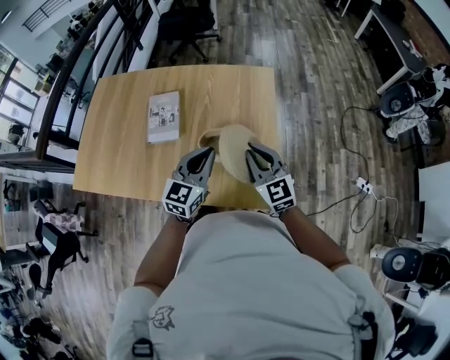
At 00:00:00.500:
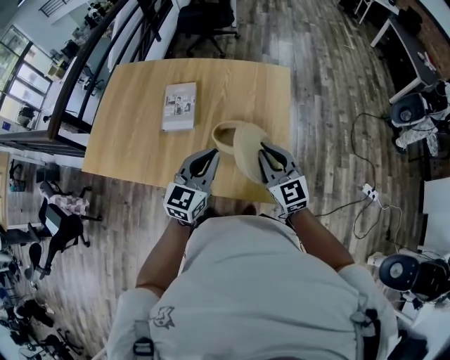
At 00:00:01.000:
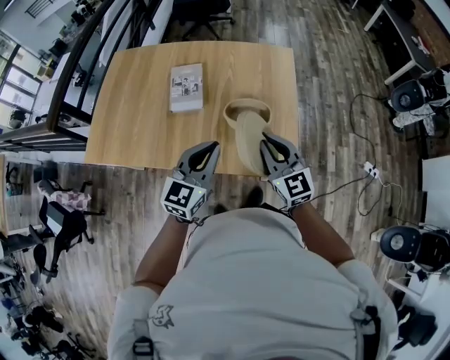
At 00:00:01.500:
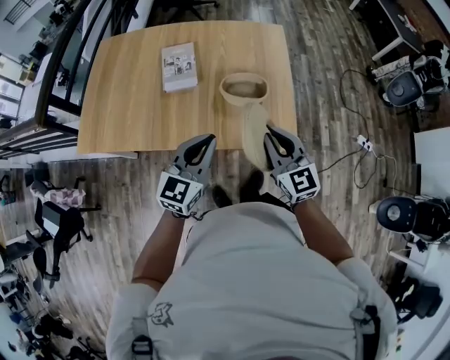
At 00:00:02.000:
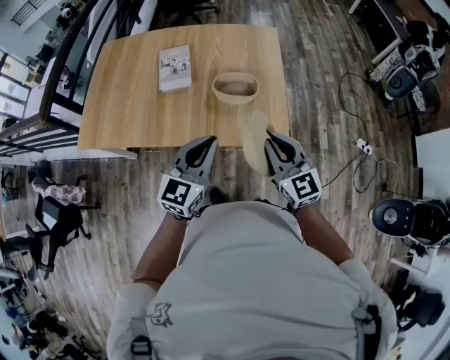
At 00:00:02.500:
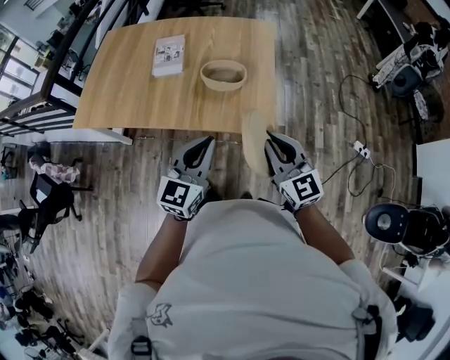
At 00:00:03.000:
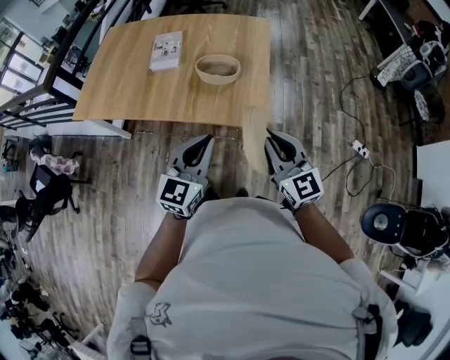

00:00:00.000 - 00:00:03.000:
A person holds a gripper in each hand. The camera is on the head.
00:00:00.000 - 00:00:01.500: The two grippers go about 20 cm backward and to the left.
00:00:01.500 - 00:00:03.000: Both grippers travel together to the right and backward, roughly 20 cm.

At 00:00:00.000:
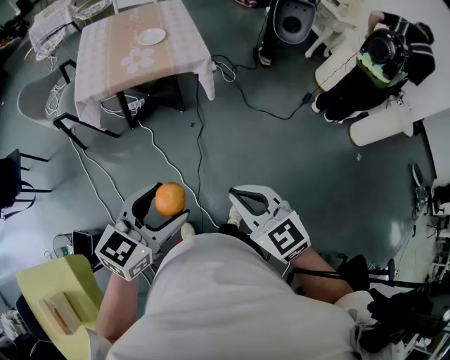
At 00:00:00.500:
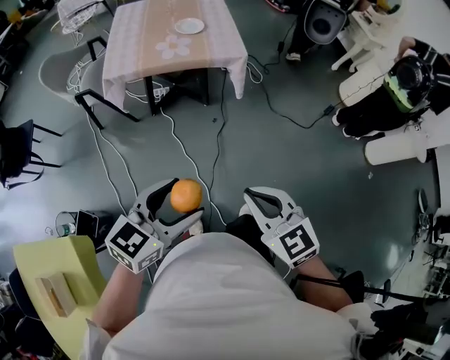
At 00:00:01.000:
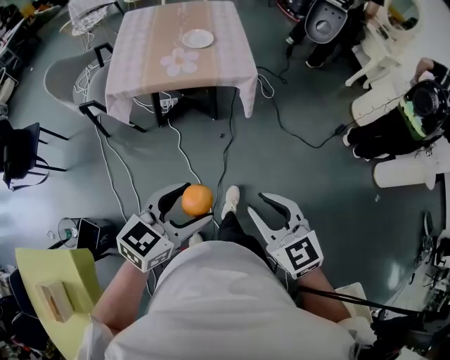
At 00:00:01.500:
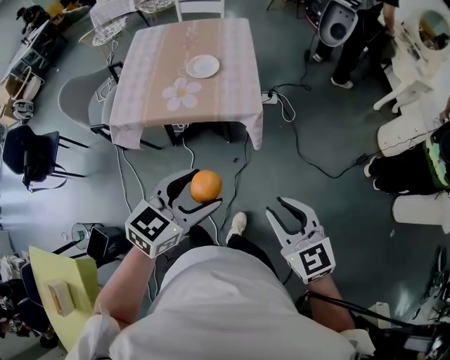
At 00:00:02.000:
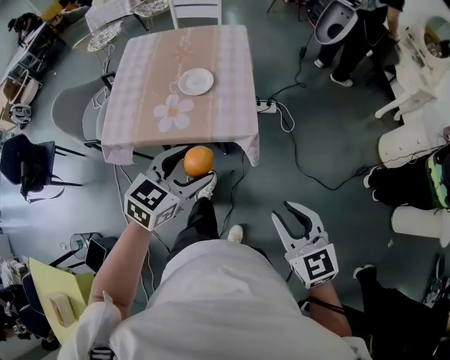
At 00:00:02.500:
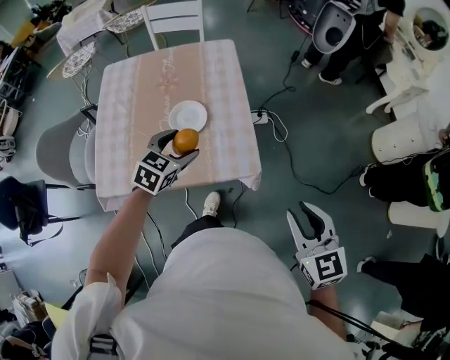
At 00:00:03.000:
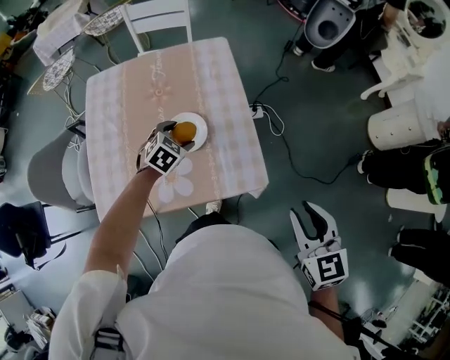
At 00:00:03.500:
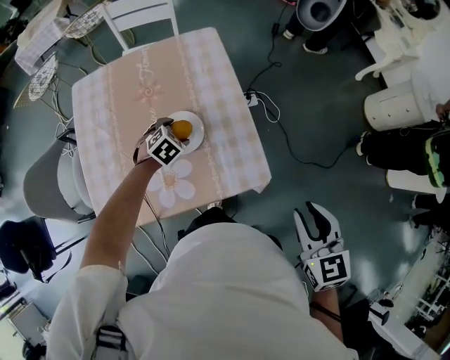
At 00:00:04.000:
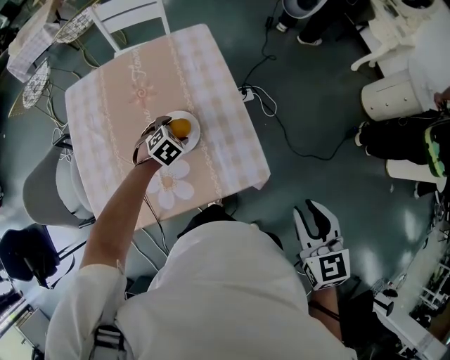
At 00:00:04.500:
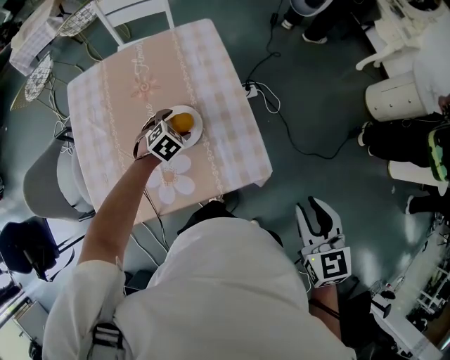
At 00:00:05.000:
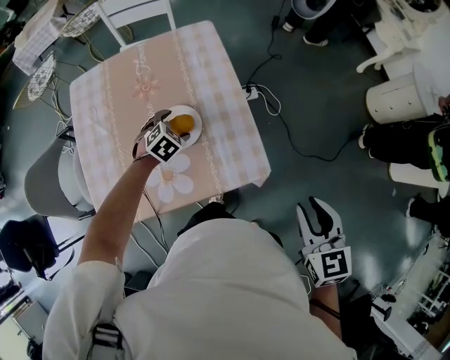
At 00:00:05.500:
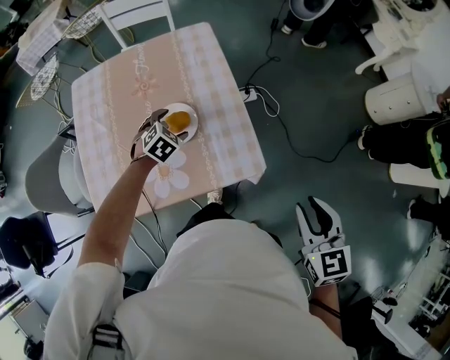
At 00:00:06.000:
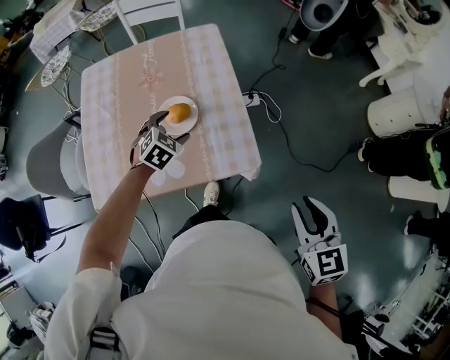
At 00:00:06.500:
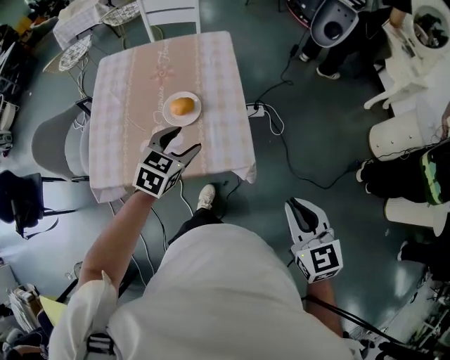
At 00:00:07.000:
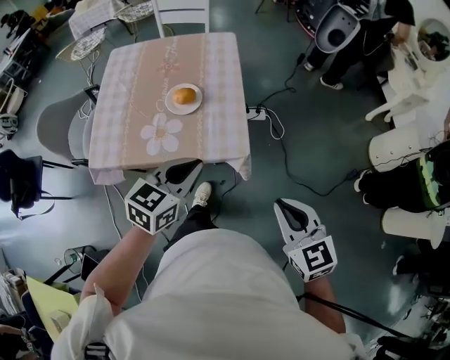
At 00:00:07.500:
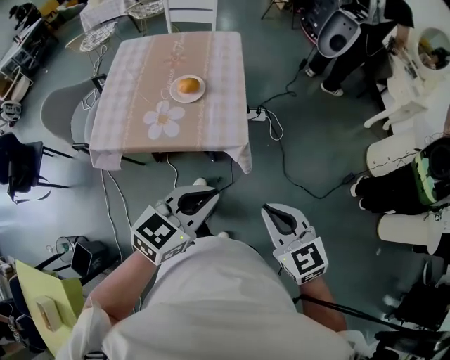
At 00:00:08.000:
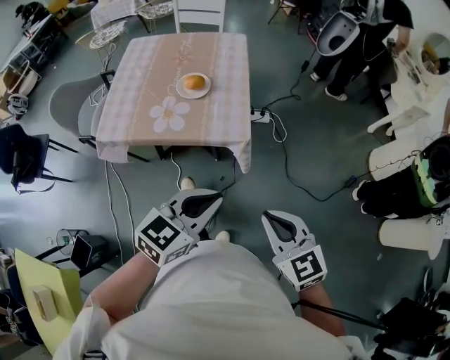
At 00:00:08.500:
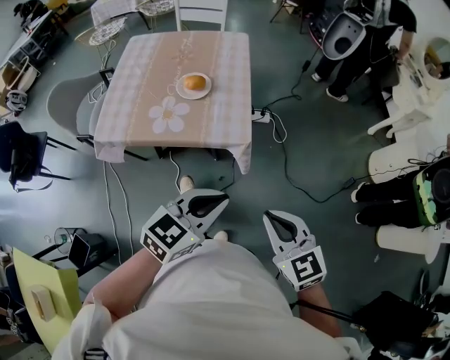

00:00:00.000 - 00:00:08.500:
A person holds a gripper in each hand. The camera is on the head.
00:00:00.000 - 00:00:02.000: The two grippers travel together, forward, some 40 cm. The right gripper opens.
00:00:02.000 - 00:00:04.000: The left gripper heads forward, downward and to the left, covering approximately 50 cm, and tilts its fingers about 40 degrees downward. Meanwhile the right gripper is displaced forward and to the left by about 25 cm, and turns by roughly 30 degrees.
00:00:04.000 - 00:00:06.500: The left gripper goes roughly 25 cm upward, backward and to the right, and changes its angle by some 40 degrees. The right gripper is displaced backward and to the right by some 10 cm.
00:00:06.500 - 00:00:08.500: The left gripper heads backward and to the right, covering approximately 30 cm, swivels some 20 degrees, and closes. The right gripper is displaced backward by roughly 15 cm.

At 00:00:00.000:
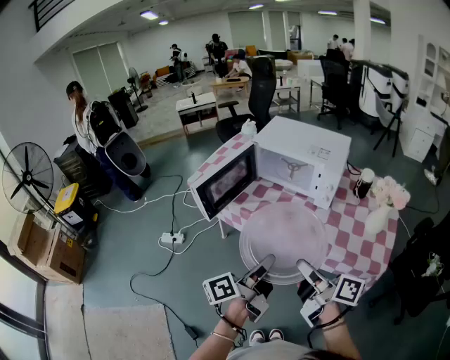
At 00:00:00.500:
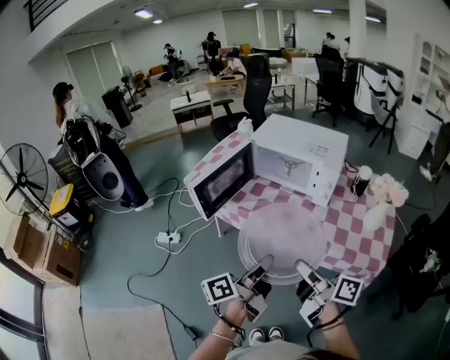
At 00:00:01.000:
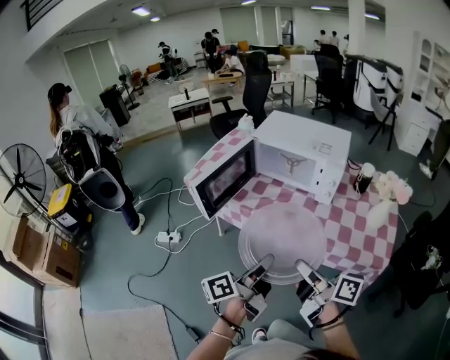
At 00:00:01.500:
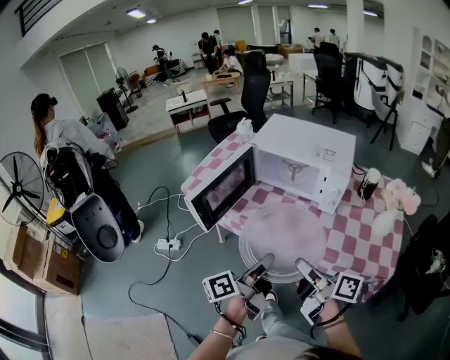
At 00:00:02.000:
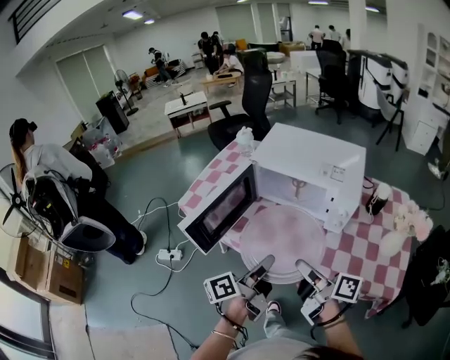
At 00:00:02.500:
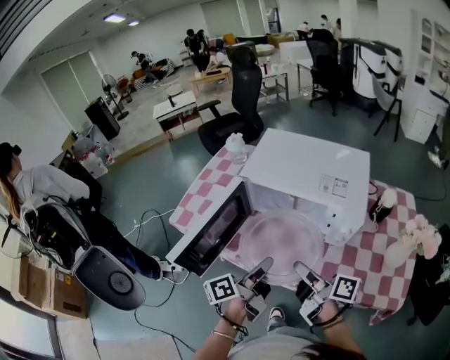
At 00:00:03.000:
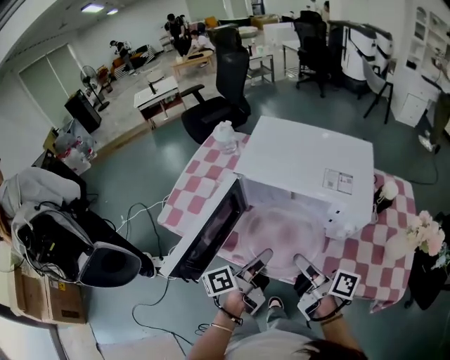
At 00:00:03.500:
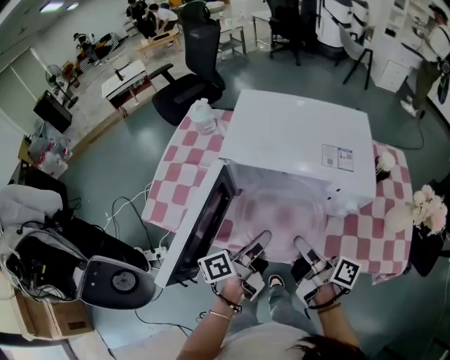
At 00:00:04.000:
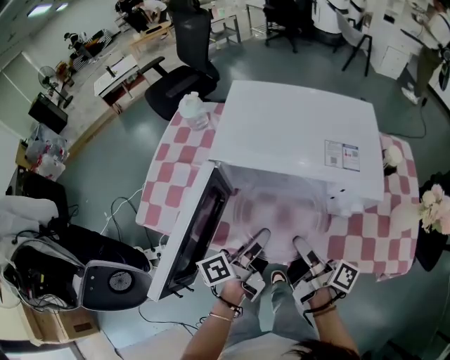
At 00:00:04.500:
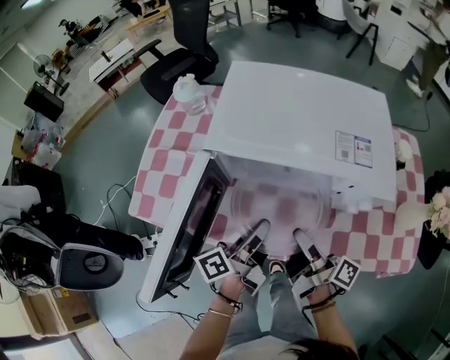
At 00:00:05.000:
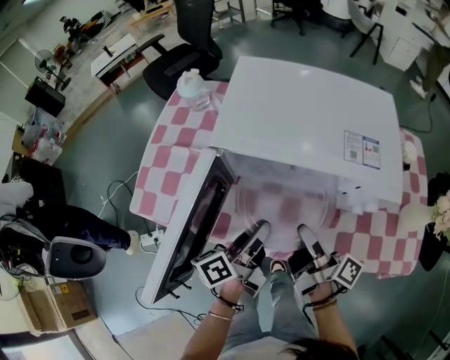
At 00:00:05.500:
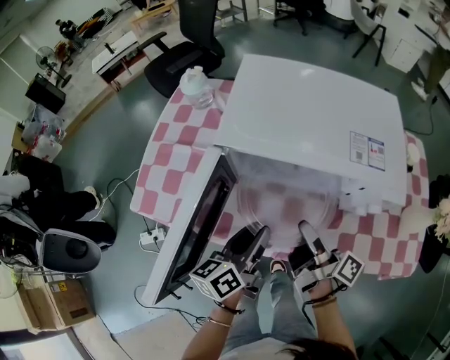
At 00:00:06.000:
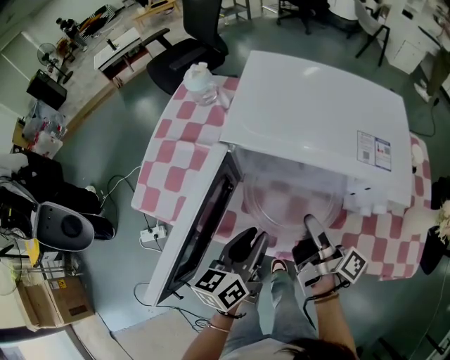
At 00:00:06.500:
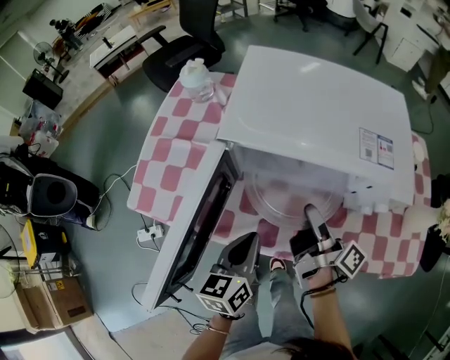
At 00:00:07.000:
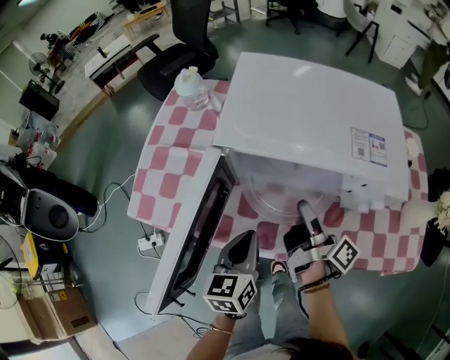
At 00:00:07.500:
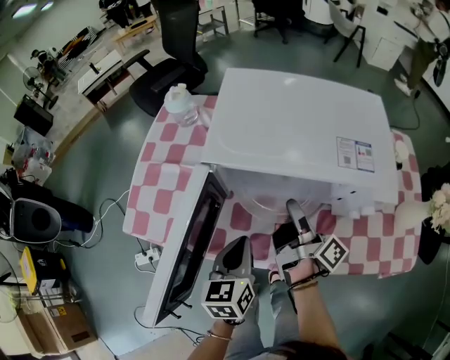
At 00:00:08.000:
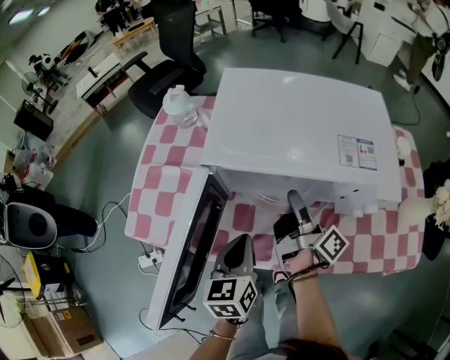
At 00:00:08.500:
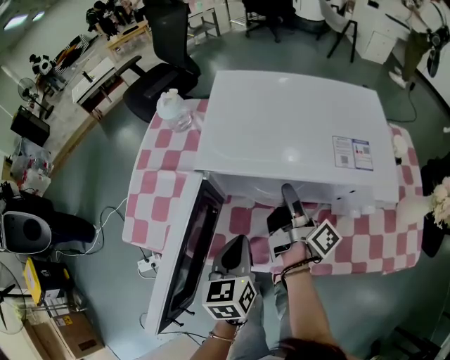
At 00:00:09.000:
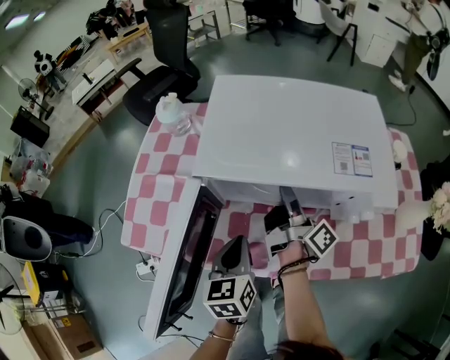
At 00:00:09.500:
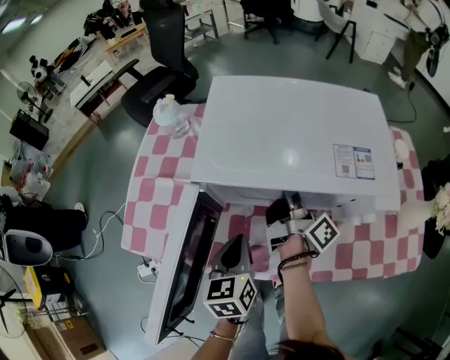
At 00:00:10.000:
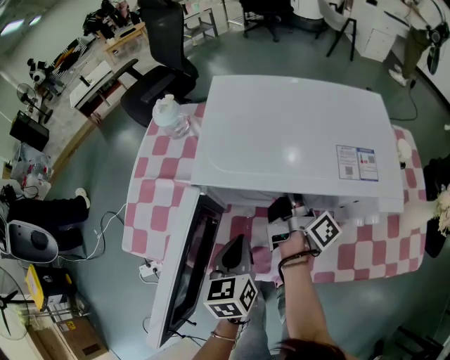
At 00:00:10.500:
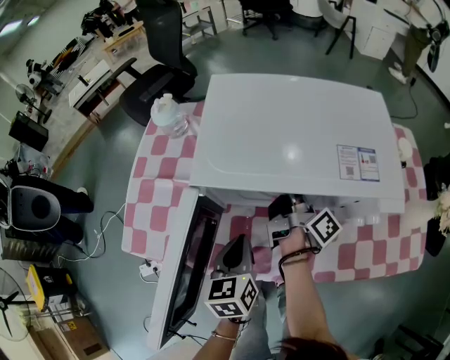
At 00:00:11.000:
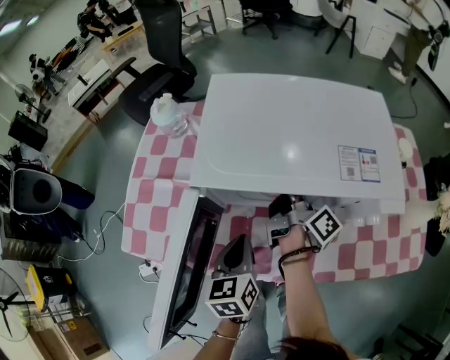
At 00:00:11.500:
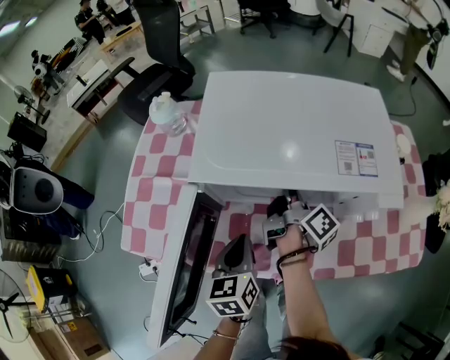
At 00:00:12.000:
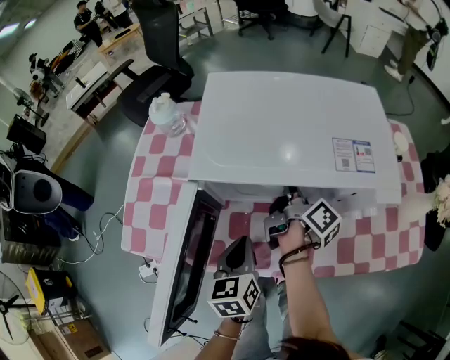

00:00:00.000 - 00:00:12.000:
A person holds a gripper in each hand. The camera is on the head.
00:00:00.000 - 00:00:02.000: The left gripper changes place by approximately 20 cm.
00:00:02.000 - 00:00:04.000: The left gripper moves some 20 cm.
00:00:04.000 - 00:00:06.000: The left gripper rotates roughly 40 degrees.
00:00:06.000 - 00:00:08.000: The left gripper swivels roughly 20 degrees, and closes its fingers.

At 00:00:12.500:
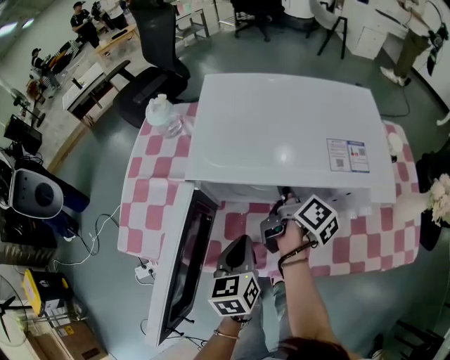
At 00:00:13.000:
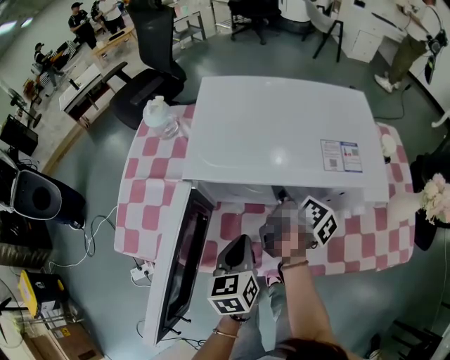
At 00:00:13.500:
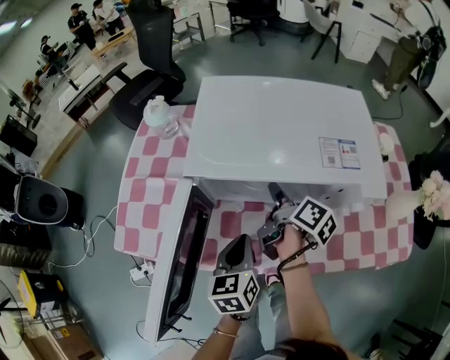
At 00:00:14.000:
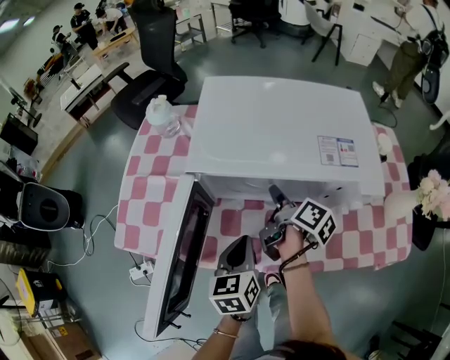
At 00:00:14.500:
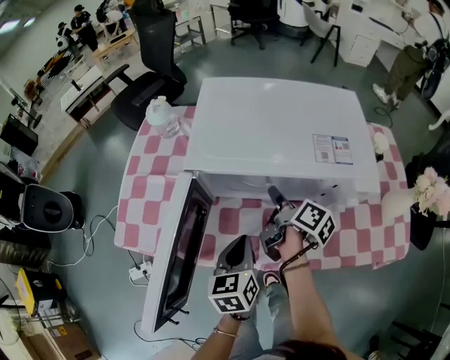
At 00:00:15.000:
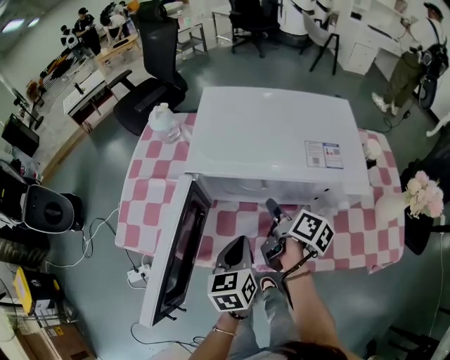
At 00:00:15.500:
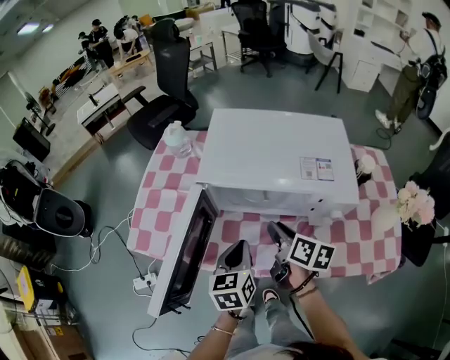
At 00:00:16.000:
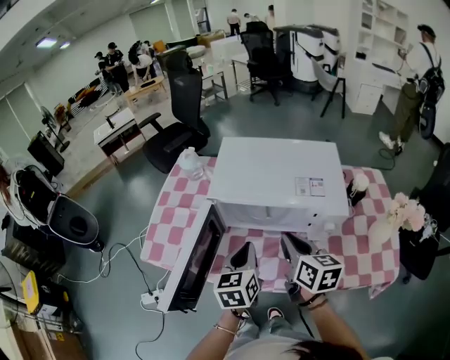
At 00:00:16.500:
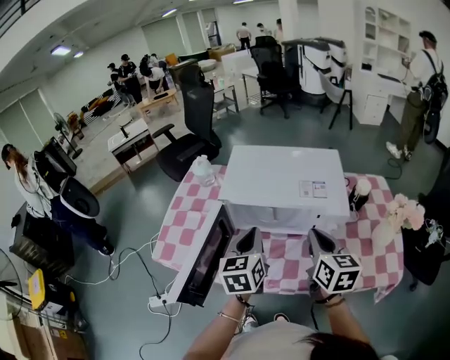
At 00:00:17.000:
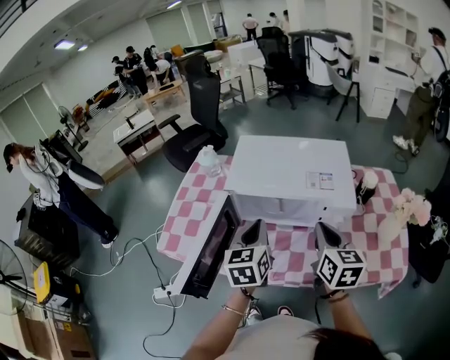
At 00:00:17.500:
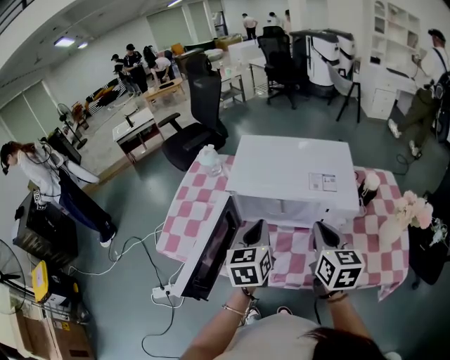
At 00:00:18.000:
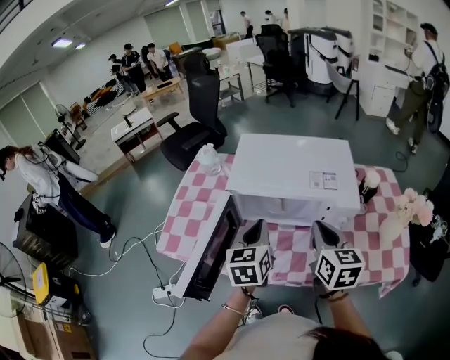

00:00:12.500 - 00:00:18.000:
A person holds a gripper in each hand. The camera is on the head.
00:00:14.500 - 00:00:16.000: The left gripper goes approximately 10 cm upward.
00:00:16.000 - 00:00:18.000: The left gripper moves about 5 cm.
